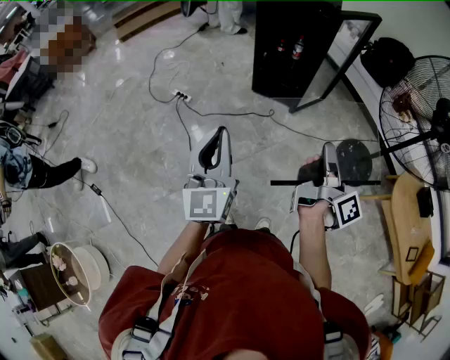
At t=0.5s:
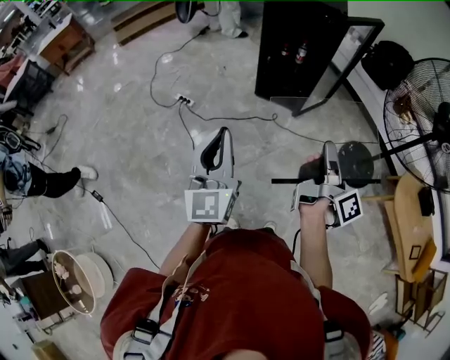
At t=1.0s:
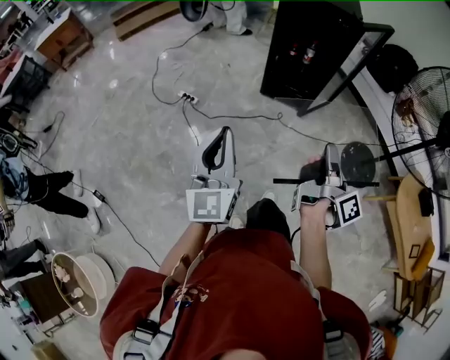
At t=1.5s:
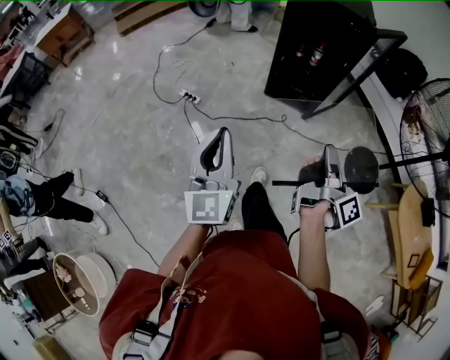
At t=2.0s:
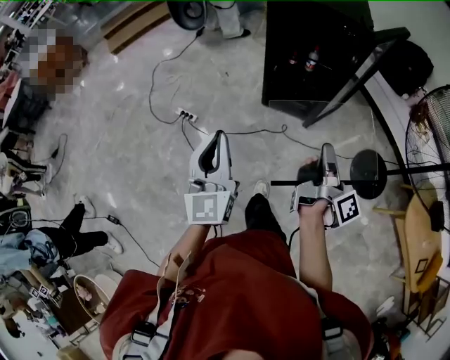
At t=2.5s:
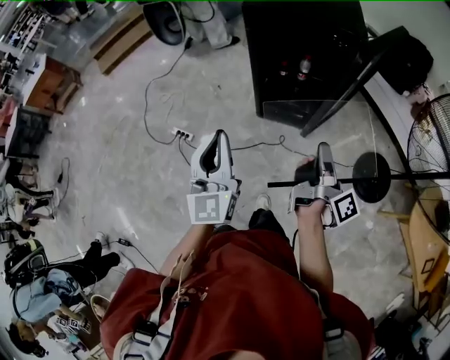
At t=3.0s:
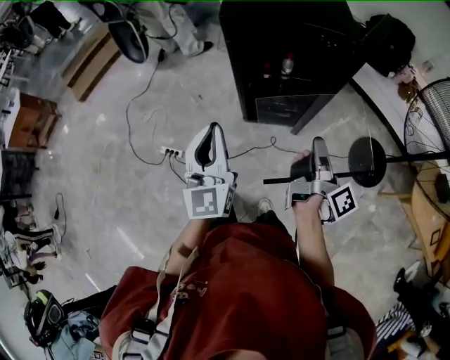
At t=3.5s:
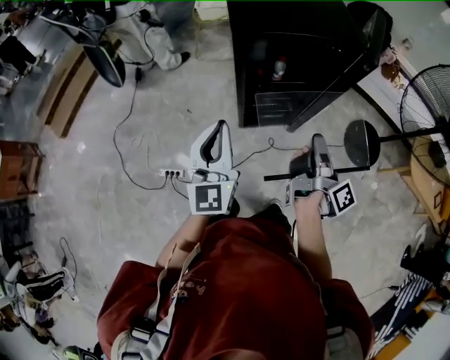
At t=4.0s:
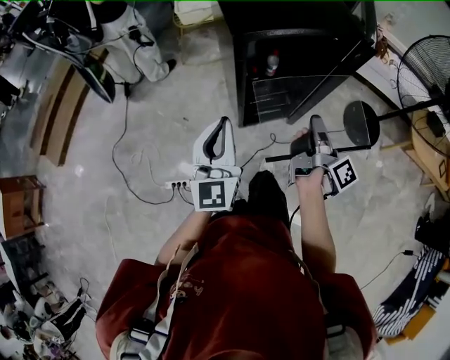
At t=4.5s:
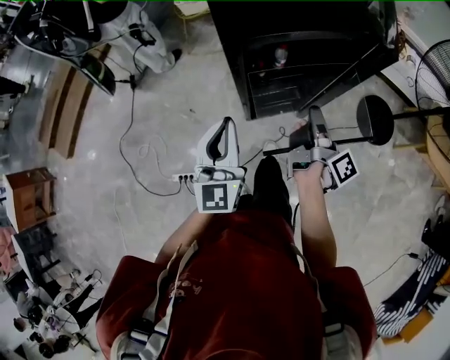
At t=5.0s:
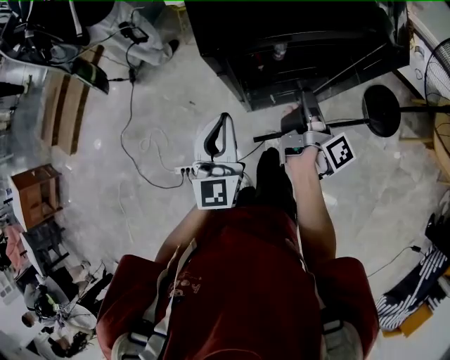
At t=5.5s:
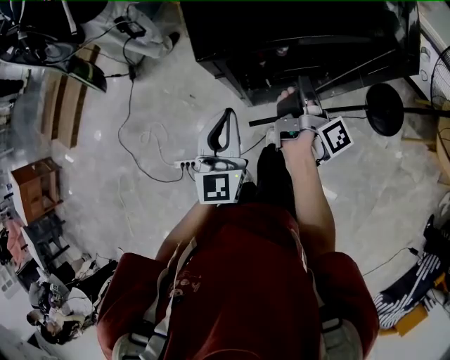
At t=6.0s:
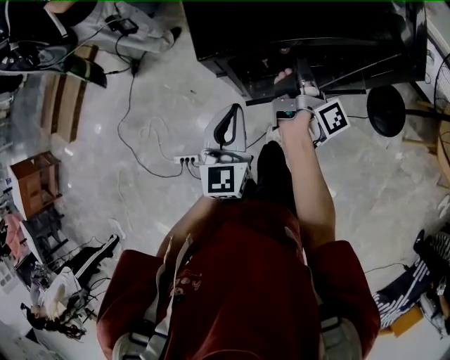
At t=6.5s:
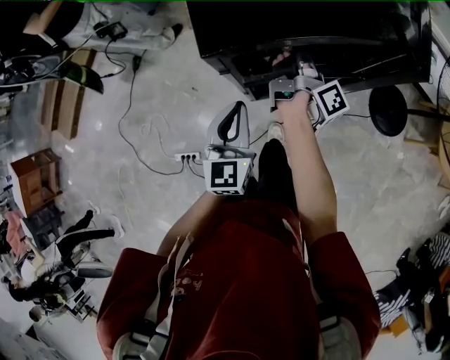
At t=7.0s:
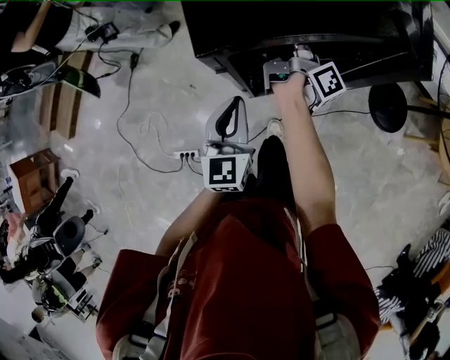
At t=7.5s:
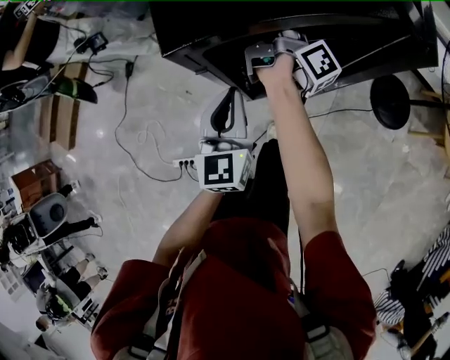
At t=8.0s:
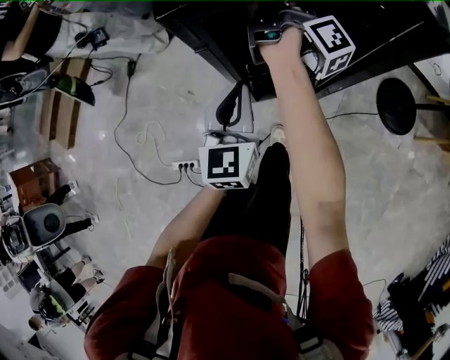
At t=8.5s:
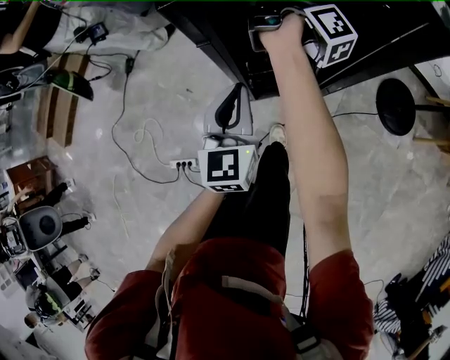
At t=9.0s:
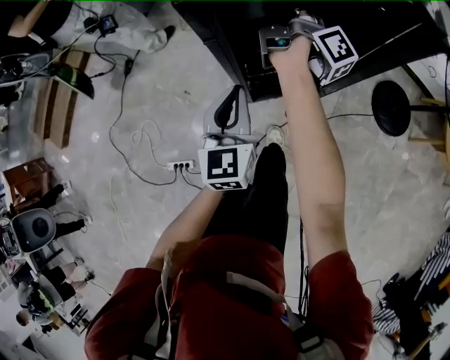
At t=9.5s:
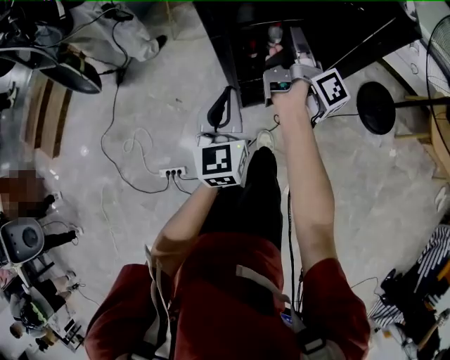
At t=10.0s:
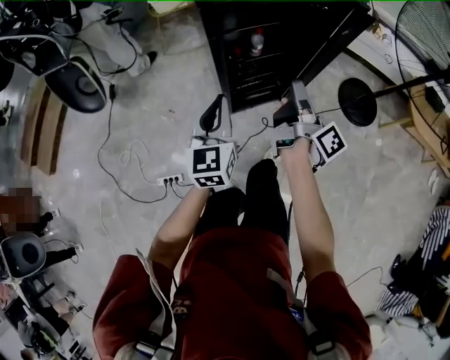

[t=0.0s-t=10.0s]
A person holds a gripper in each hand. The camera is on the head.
t=0.0s to t=2.0s: The left gripper moves about 25 cm.
t=2.0s to t=4.0s: The left gripper changes place by roughly 40 cm, and swivels approximately 40 degrees.
t=4.0s to t=6.0s: The left gripper shifts by roughly 20 cm.
t=6.0s to t=8.0s: The left gripper is displaced downward by about 5 cm.
t=8.0s to t=10.0s: The left gripper moves some 15 cm.

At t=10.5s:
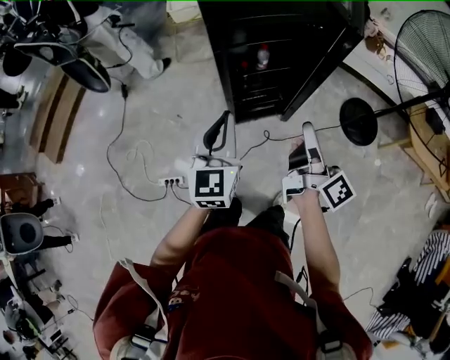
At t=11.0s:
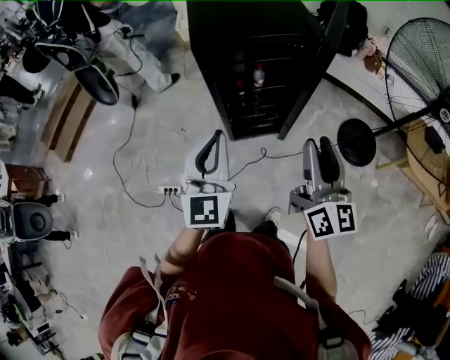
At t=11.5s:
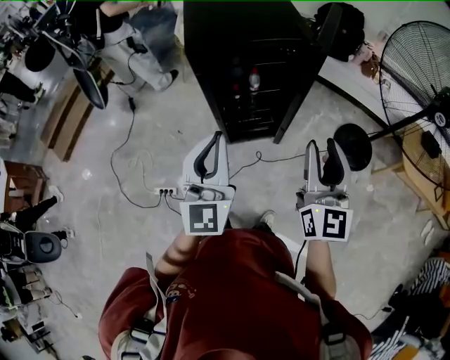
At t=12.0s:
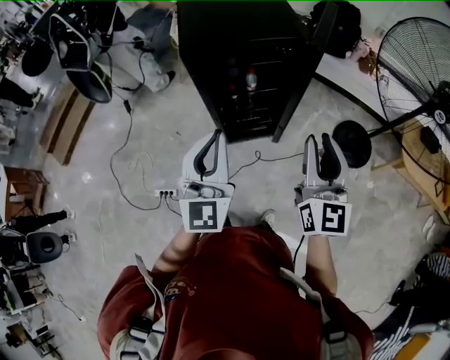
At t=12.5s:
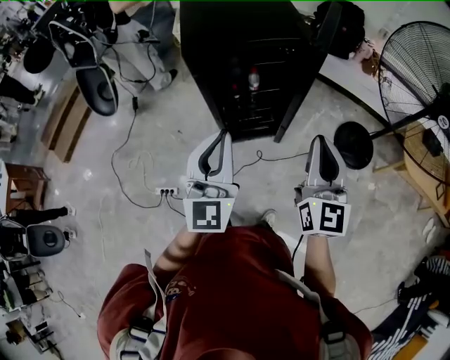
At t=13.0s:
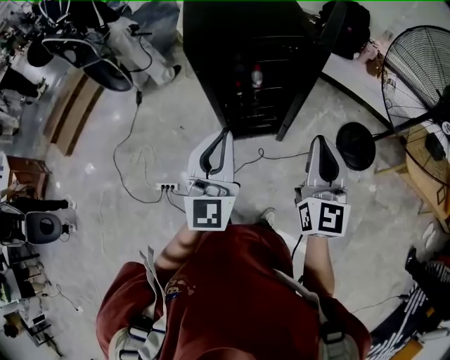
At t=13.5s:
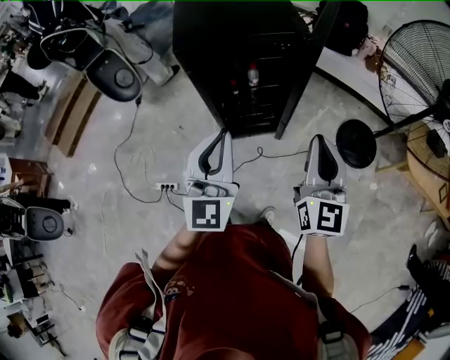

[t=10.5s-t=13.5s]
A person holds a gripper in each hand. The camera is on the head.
t=10.5s to t=12.0s: The left gripper heads upward, covering roughly 10 cm.

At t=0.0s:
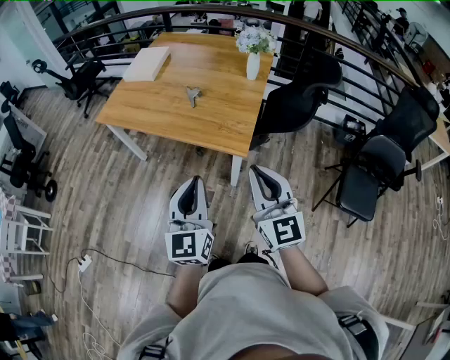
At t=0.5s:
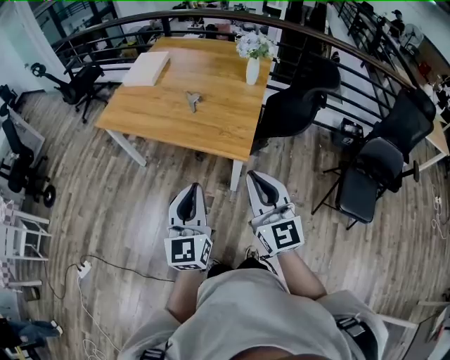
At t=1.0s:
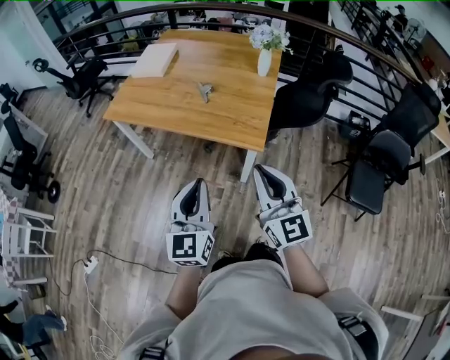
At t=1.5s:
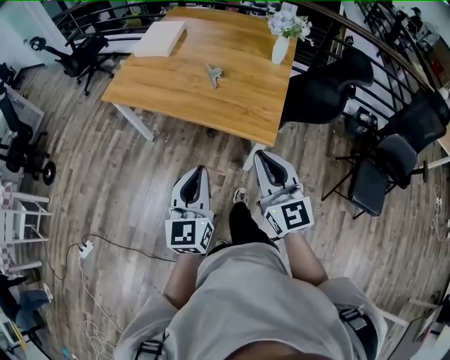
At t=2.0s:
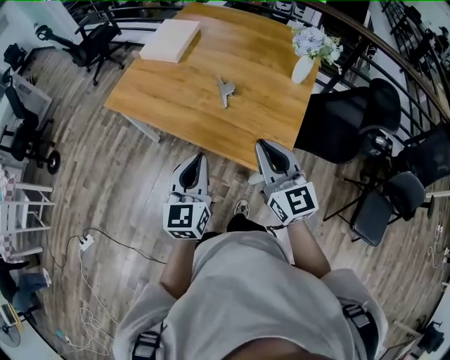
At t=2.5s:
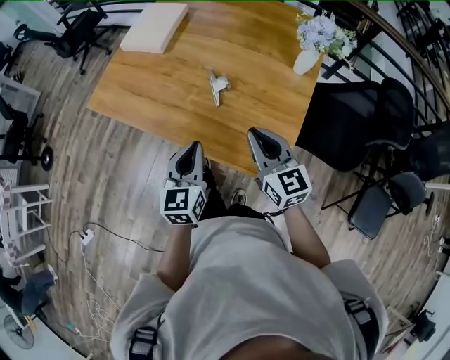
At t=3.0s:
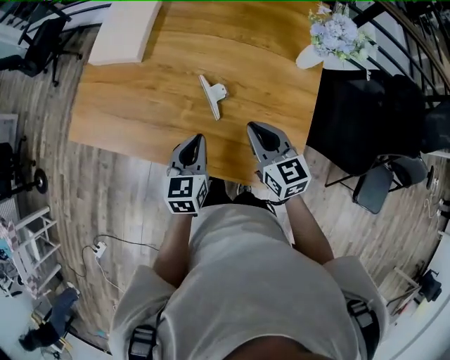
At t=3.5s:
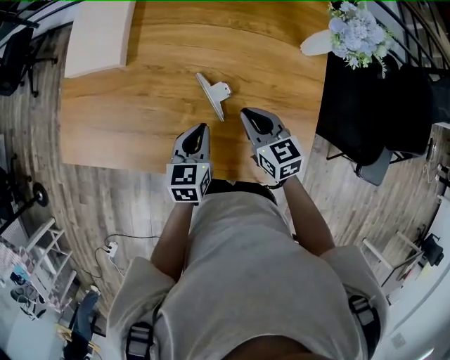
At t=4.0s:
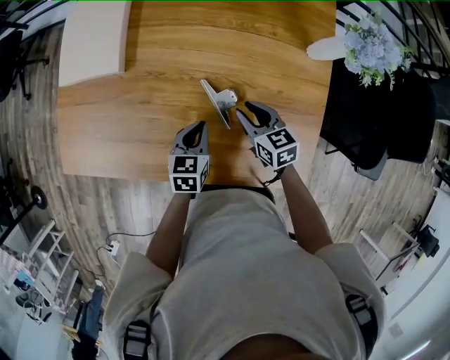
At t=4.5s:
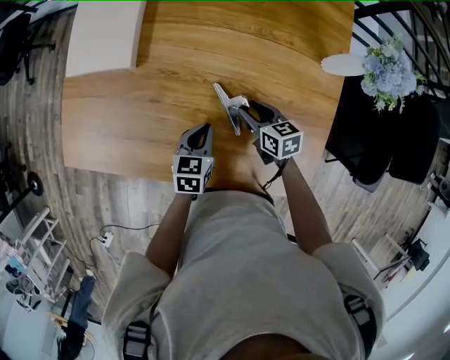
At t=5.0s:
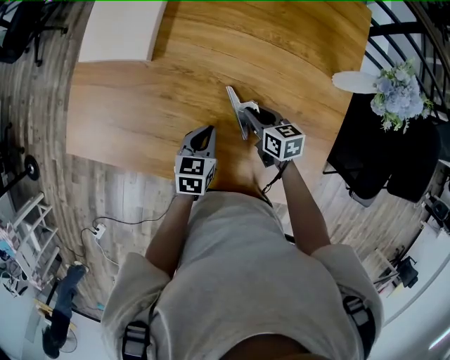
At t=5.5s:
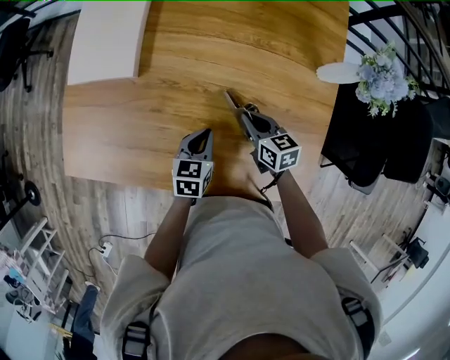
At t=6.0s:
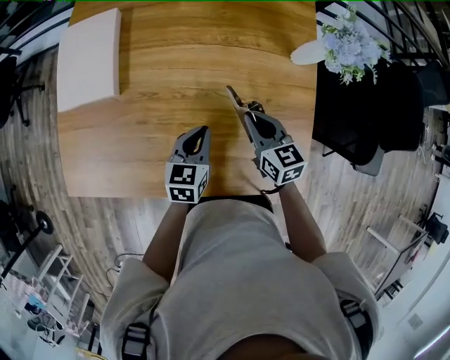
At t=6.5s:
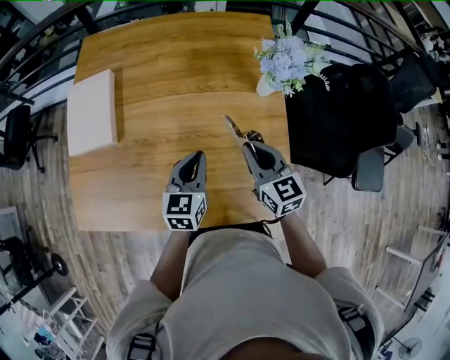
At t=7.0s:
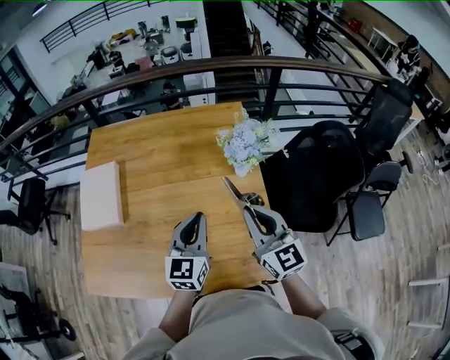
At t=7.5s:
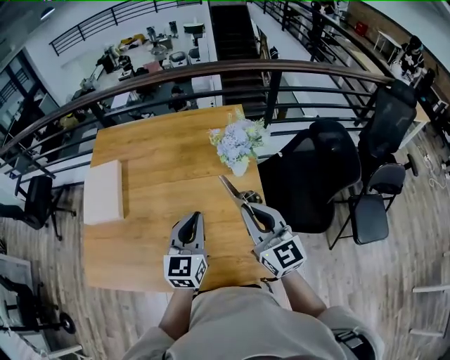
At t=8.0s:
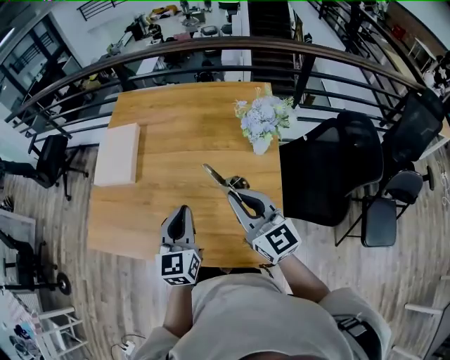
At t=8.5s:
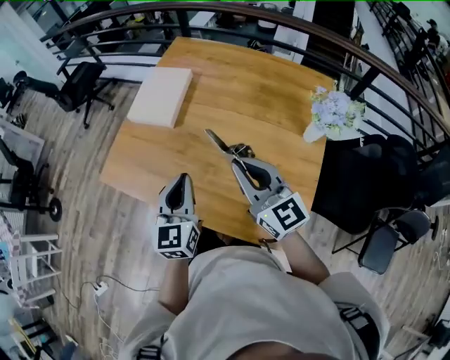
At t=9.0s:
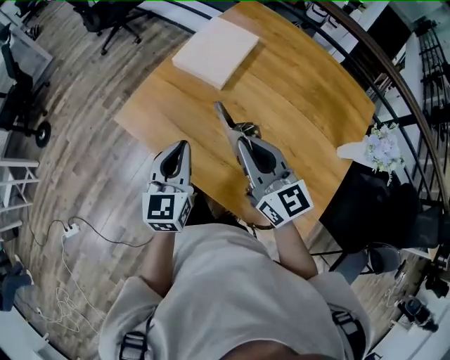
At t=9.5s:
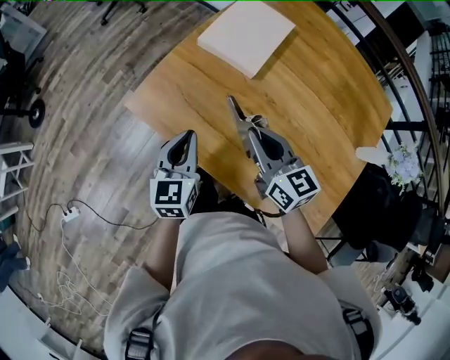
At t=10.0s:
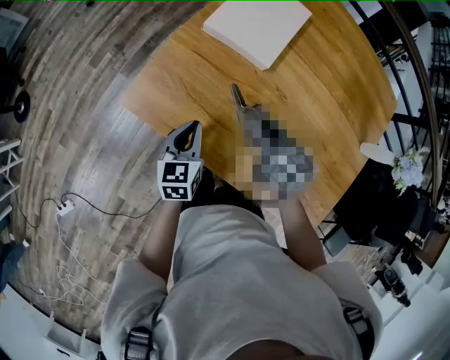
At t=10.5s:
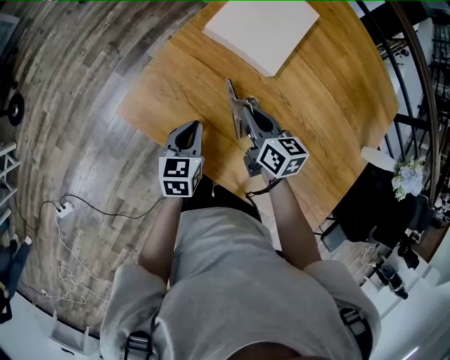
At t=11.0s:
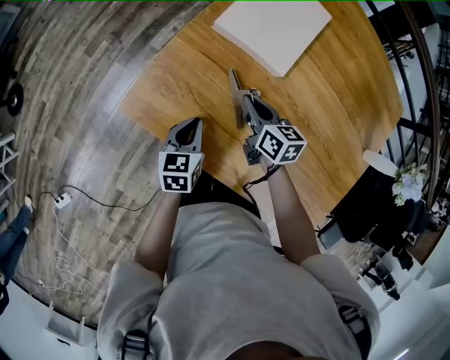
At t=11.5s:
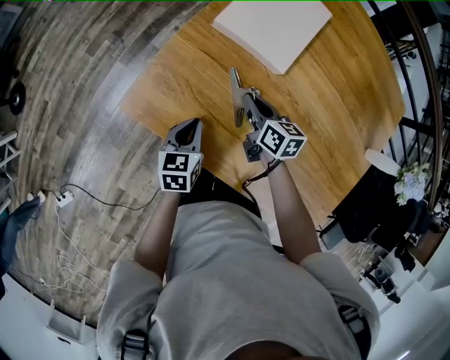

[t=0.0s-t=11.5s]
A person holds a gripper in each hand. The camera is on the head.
t=0.0s to t=2.0s: Both grippers move forward, roughly 25 cm.
t=2.0s to t=4.0s: The grippers both shift forward and downward by roughly 40 cm. The right gripper angles its fingers downward, by about 40 degrees; the left gripper points its fingers about 30 degrees further downward.
t=4.0s to t=6.0s: The grippers both shift upward by roughly 5 cm.
t=6.0s to t=7.5s: The two grippers go roughly 30 cm upward and to the right. The right gripper tips its fingers upward by approximately 30 degrees; the left gripper turns by approximately 30 degrees.
t=7.5s to t=9.5s: Both grippers are carried roughly 50 cm. The right gripper swivels roughly 50 degrees, while the left gripper changes its angle by about 50 degrees.
t=9.5s to t=11.5s: The right gripper moves downward and forward, approximately 25 cm, and turns by approximately 30 degrees. Meanwhile the left gripper goes some 20 cm downward, and swivels about 20 degrees.

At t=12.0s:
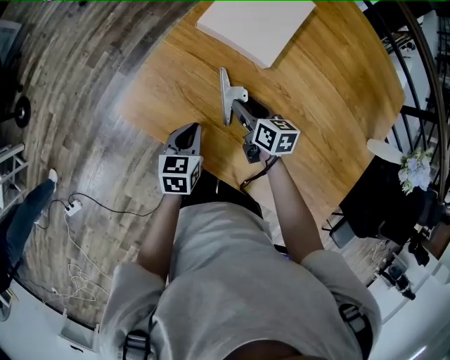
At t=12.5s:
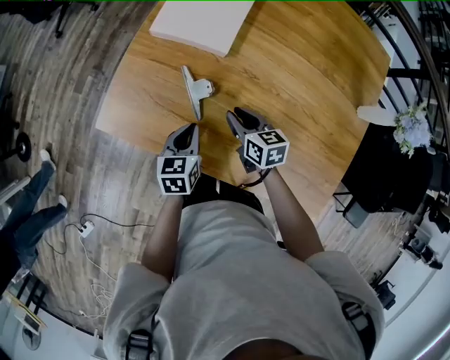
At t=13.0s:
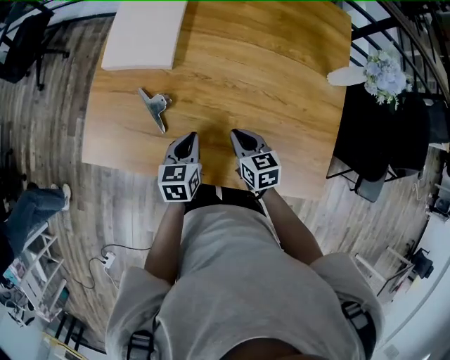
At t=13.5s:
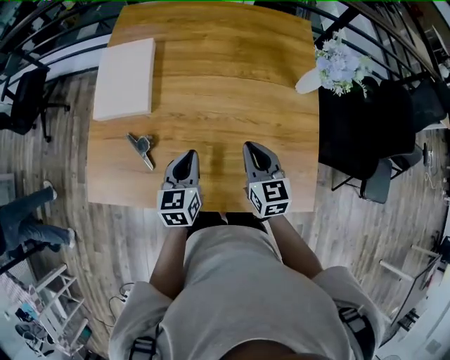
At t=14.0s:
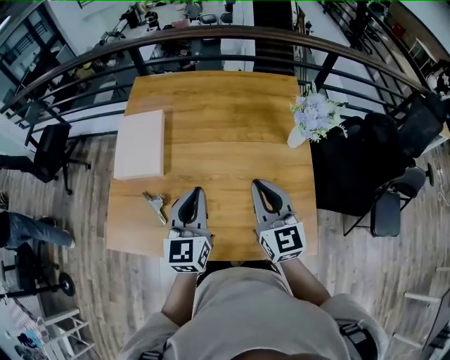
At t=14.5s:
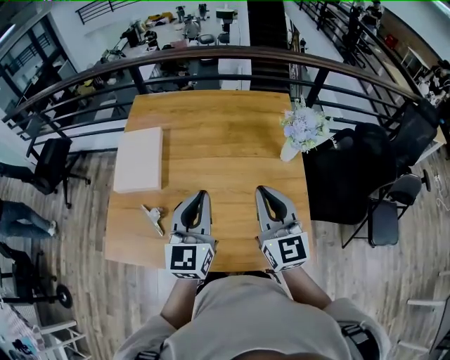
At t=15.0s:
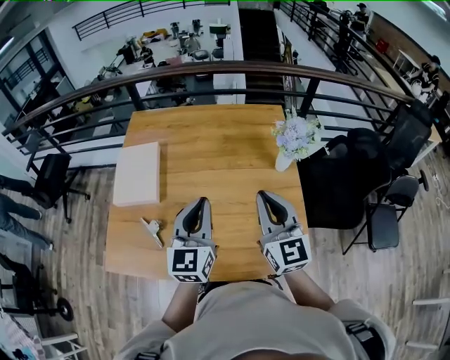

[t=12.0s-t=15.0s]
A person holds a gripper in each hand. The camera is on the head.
t=12.0s to t=13.5s: The left gripper ends up approximately 30 cm from where it was, and turns by about 30 degrees, while the right gripper moves approximately 35 cm, turns by some 40 degrees, and closes its fingers.
t=13.5s to t=15.0s: The right gripper heads upward, covering about 20 cm, and turns by roughly 30 degrees. Meanwhile the left gripper moves upward and to the right, about 20 cm, and rotates about 30 degrees.
